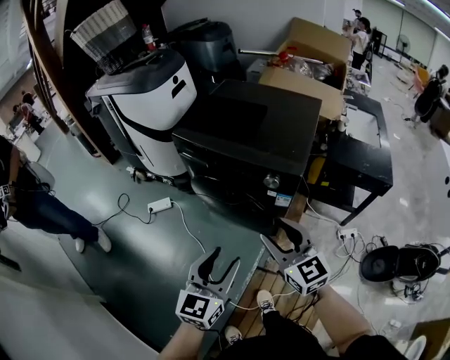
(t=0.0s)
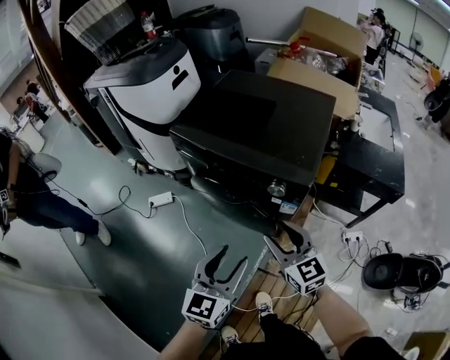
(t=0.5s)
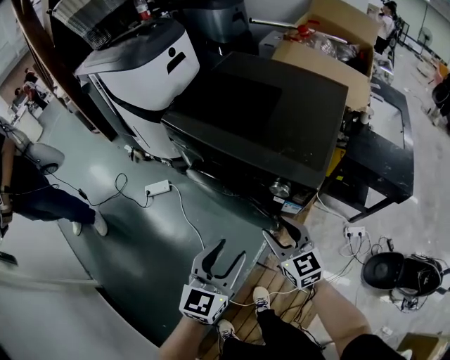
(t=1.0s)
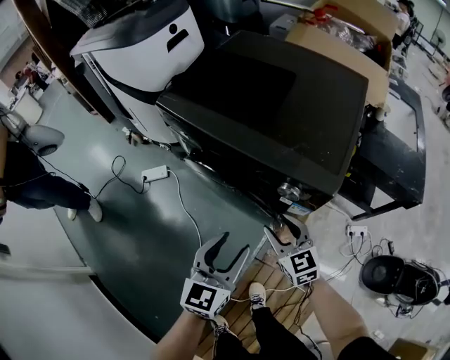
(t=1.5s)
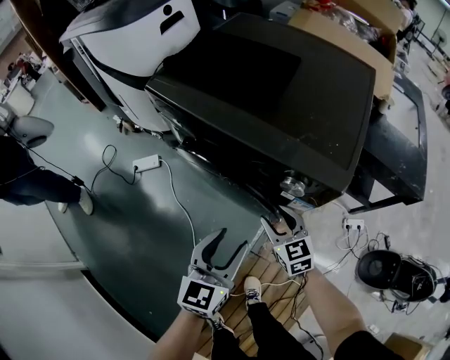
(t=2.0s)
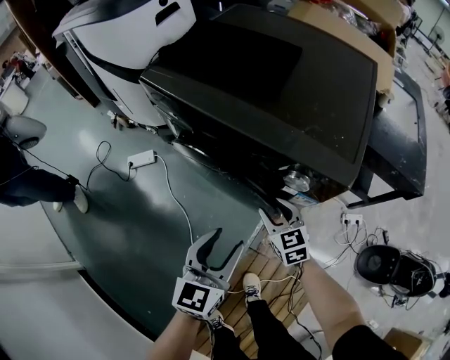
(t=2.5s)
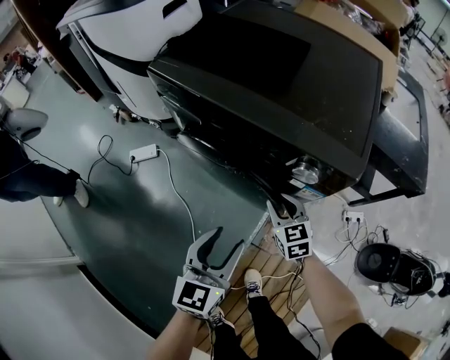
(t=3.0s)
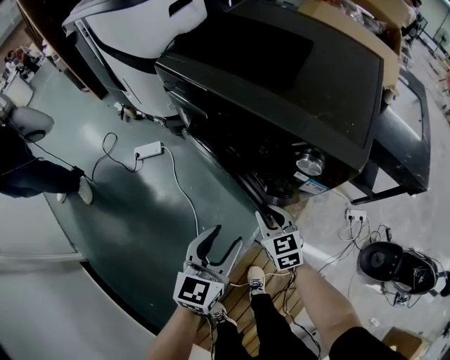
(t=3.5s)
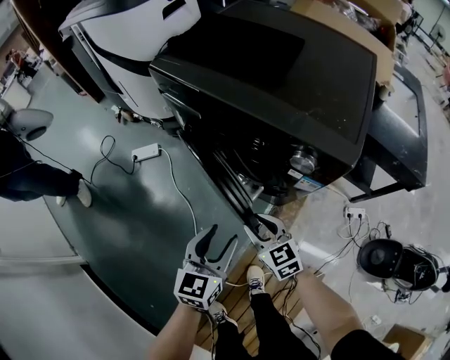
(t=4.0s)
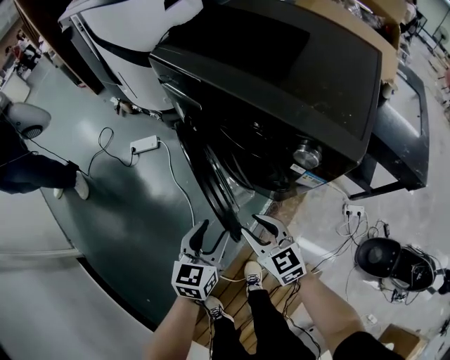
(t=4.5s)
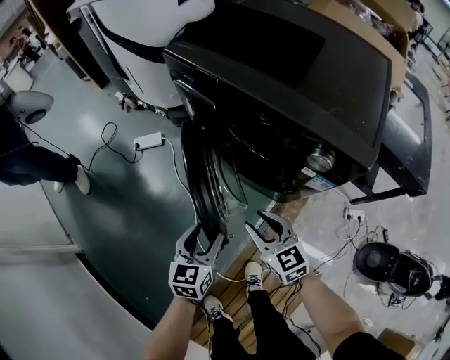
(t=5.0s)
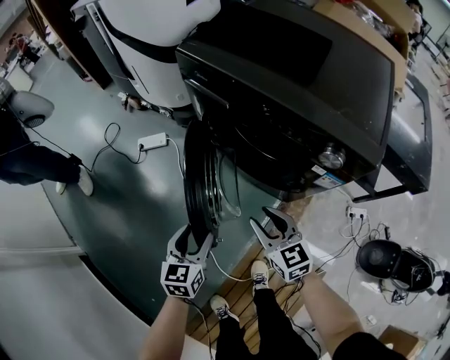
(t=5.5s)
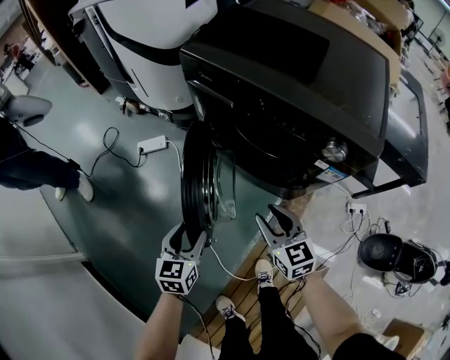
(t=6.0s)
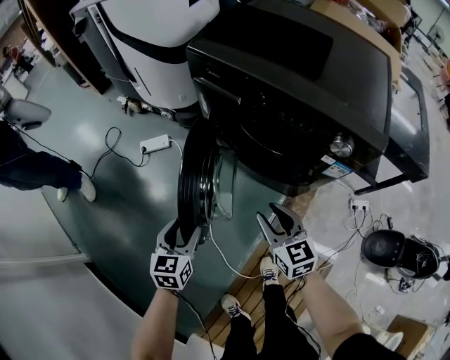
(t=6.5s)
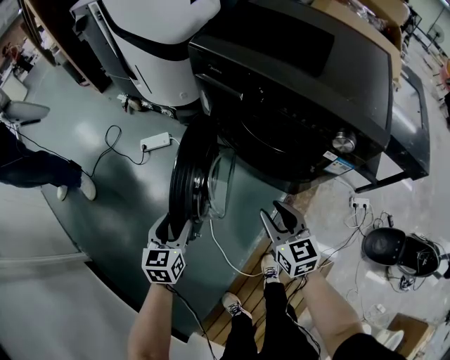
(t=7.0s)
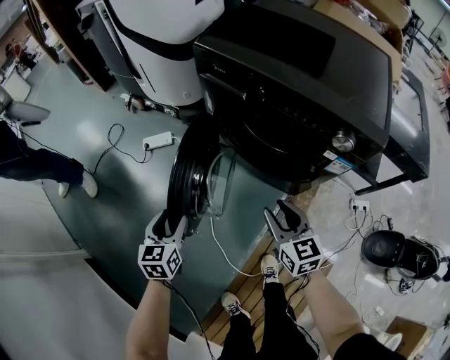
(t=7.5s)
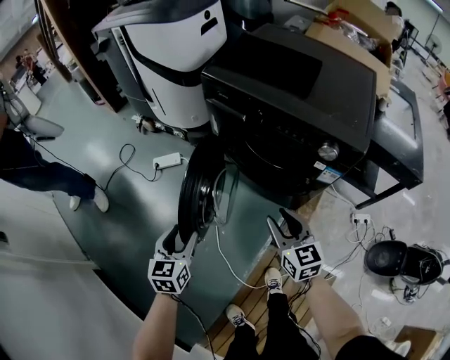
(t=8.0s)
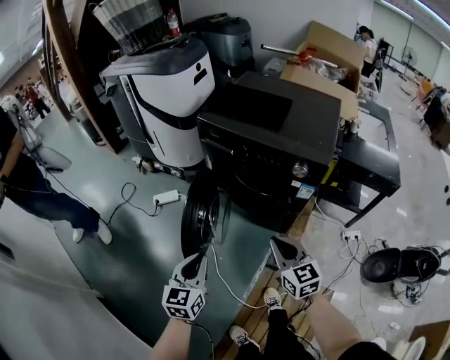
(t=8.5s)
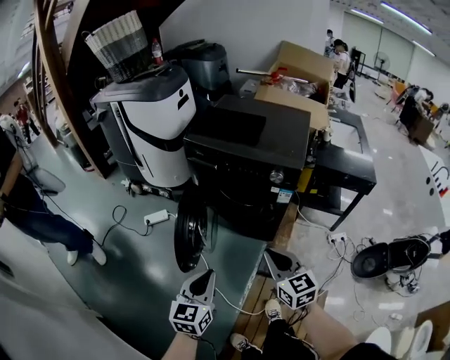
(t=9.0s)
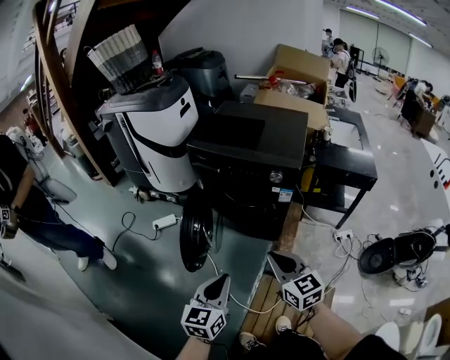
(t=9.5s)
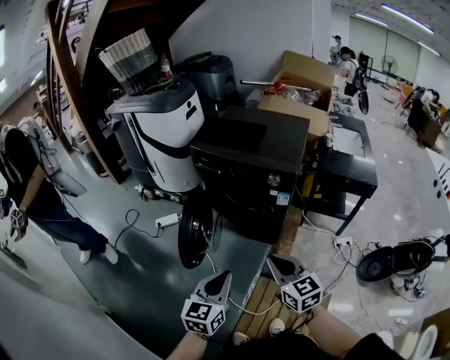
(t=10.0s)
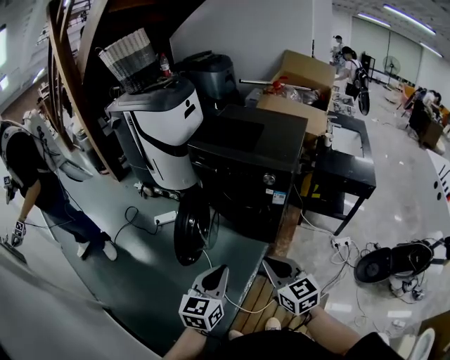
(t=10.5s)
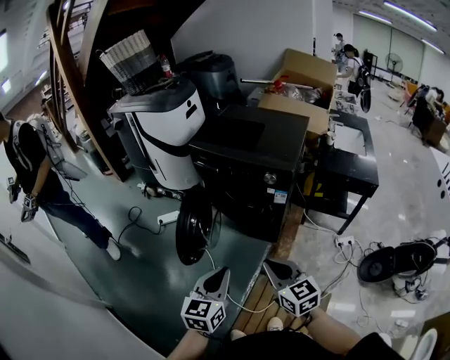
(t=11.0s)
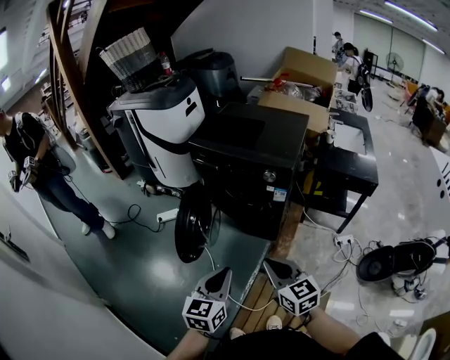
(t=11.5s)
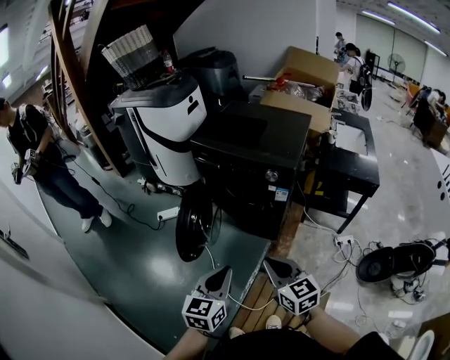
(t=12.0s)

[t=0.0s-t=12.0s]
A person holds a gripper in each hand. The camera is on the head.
t=0.0s to t=2.0s: Both grippers travel together downward and forward, approximately 30 cm. The right gripper changes its angle by about 20 degrees.
t=2.0s to t=4.0s: The left gripper travels downward by roughly 5 cm. Meanwhile the right gripper shifts some 10 cm to the left and backward.
t=4.0s to t=6.0s: The right gripper heads to the left, covering about 5 cm. Meanwhile the left gripper heads to the left, covering approximately 20 cm.
t=6.0s to t=8.0s: The left gripper travels to the left and upward by some 10 cm. The right gripper moves upward, approximately 5 cm.
t=8.0s to t=10.0s: The right gripper heads backward and upward, covering some 30 cm, and closes. Meanwhile the left gripper goes approximately 35 cm upward, backward and to the right, changes its angle by approximately 20 degrees, and closes its fingers.
t=10.0s to t=12.0s: The grippers move only a little.

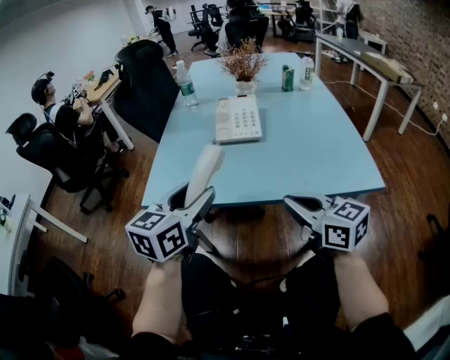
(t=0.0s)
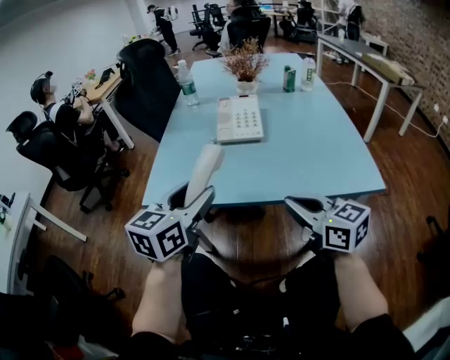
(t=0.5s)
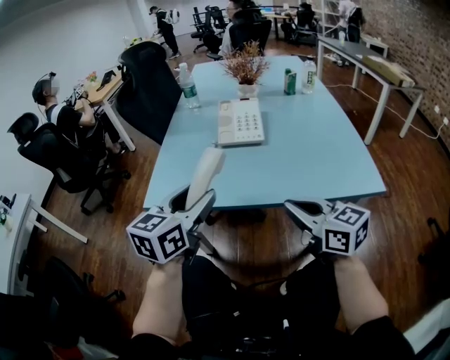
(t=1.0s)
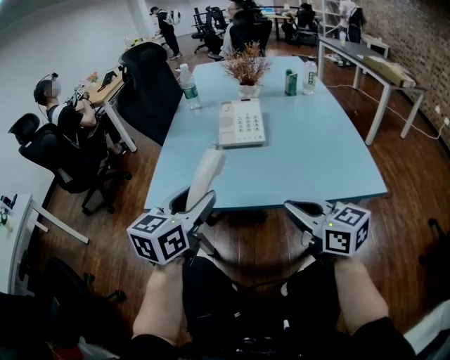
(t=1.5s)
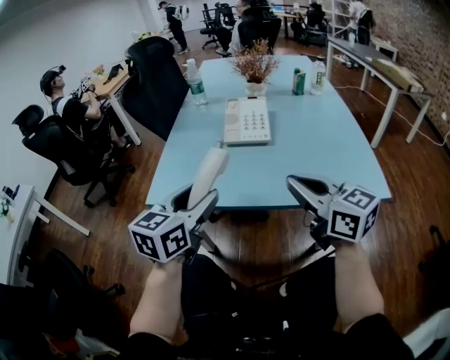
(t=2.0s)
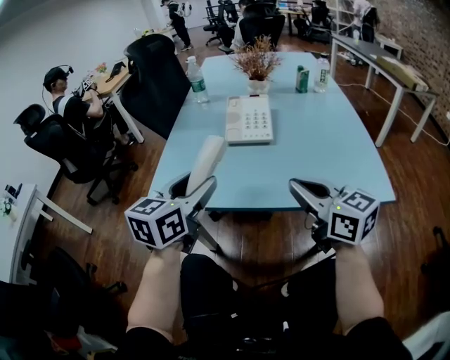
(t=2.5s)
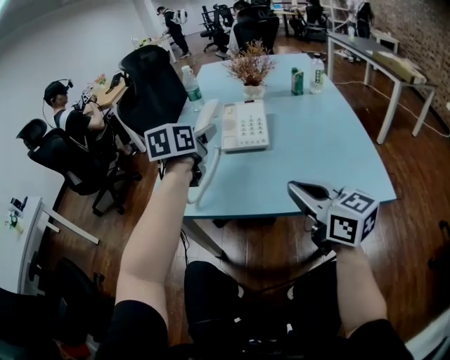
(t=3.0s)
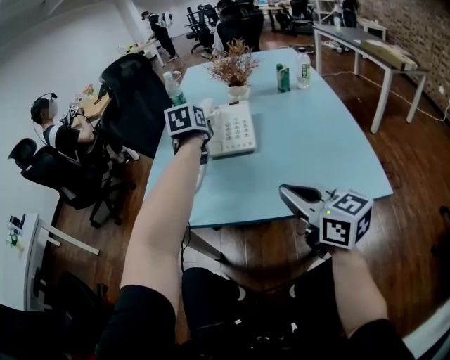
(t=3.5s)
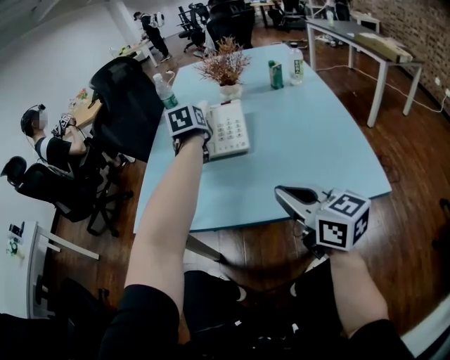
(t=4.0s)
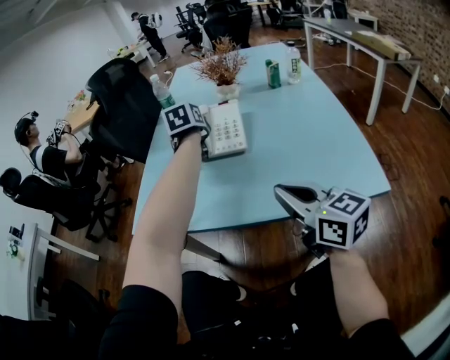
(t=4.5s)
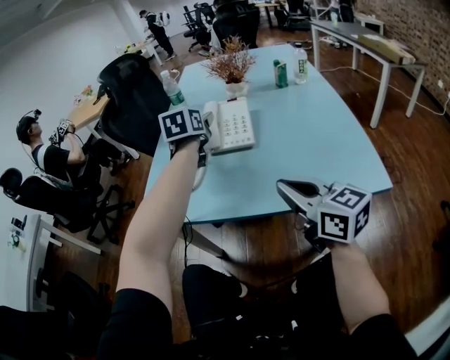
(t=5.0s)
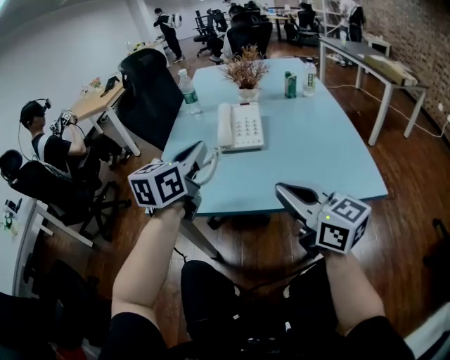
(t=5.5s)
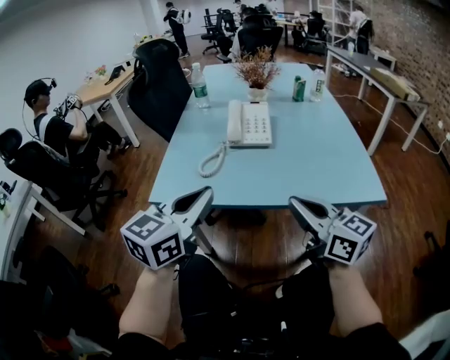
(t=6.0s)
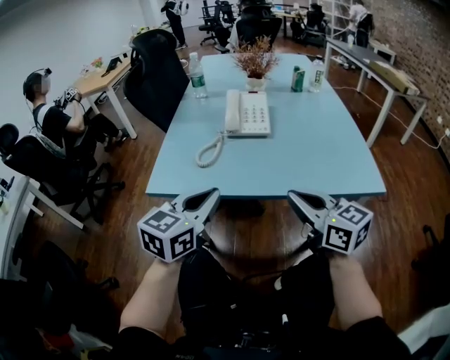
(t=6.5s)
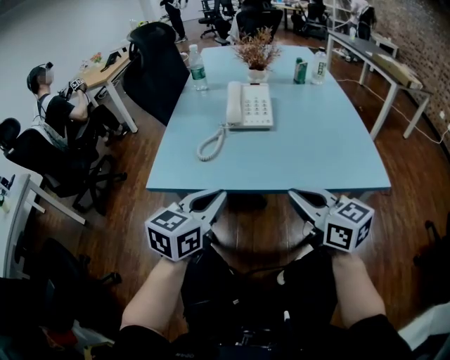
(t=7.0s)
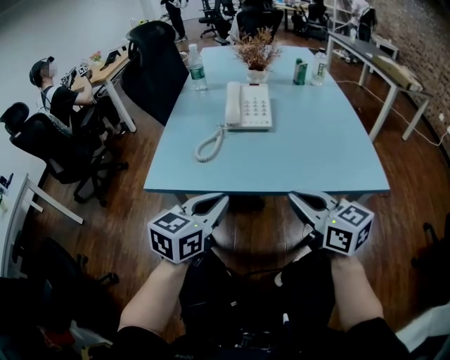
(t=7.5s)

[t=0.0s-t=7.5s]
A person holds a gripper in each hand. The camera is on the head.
t=0.0s to t=2.0s: The right gripper moves upward, some 5 cm.
t=2.0s to t=4.0s: The right gripper shifts by roughly 5 cm. Meanwhile the left gripper is displaced forward by about 35 cm, and swivels approximately 30 degrees.
t=4.0s to t=5.5s: The right gripper moves to the left, some 5 cm, while the left gripper shifts about 25 cm backward and upward, changes its angle by approximately 30 degrees, and closes.
t=5.5s to t=7.5s: The right gripper moves downward, about 5 cm; the left gripper travels backward and downward by approximately 20 cm.

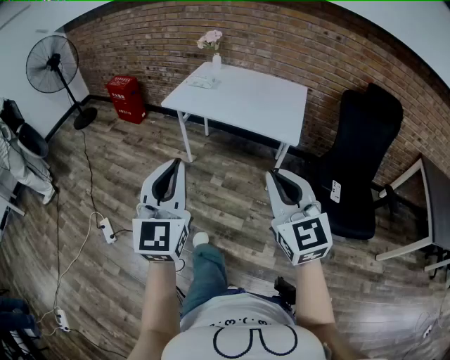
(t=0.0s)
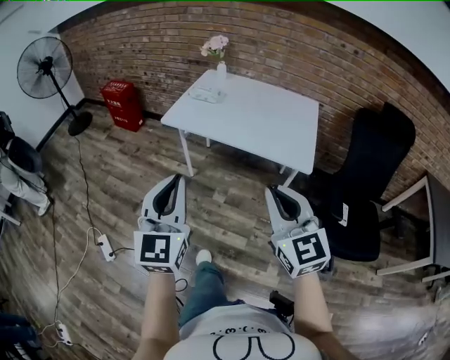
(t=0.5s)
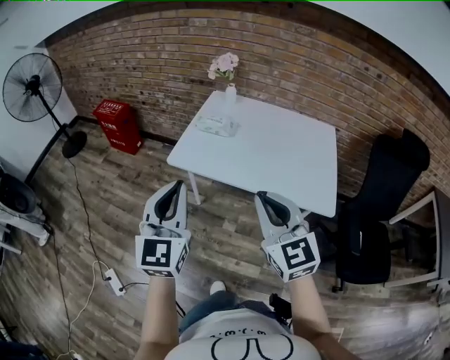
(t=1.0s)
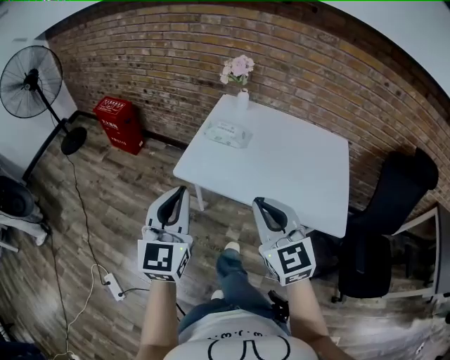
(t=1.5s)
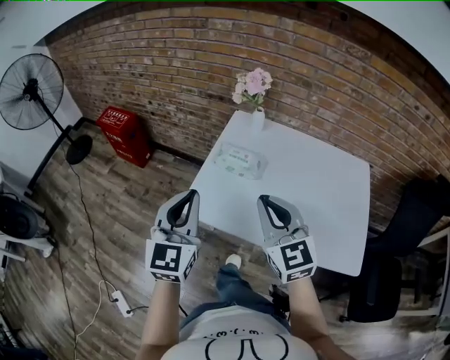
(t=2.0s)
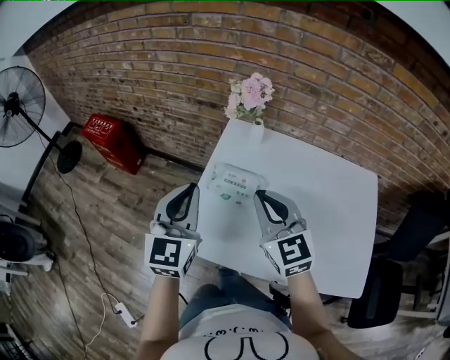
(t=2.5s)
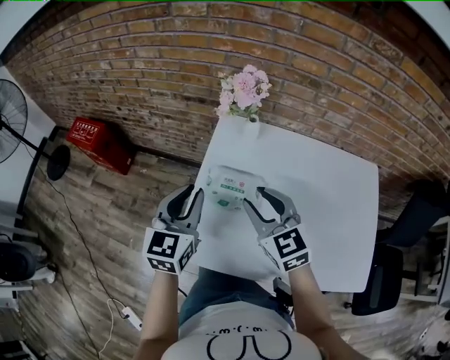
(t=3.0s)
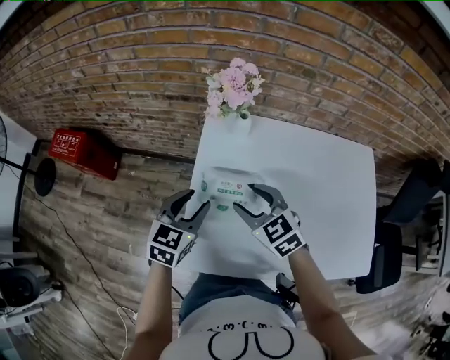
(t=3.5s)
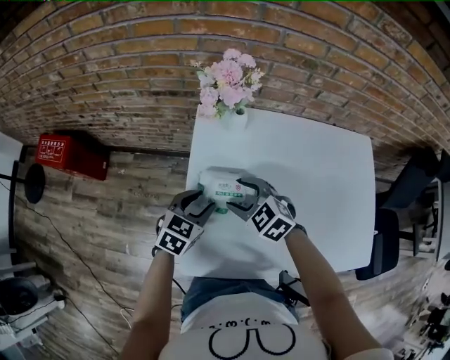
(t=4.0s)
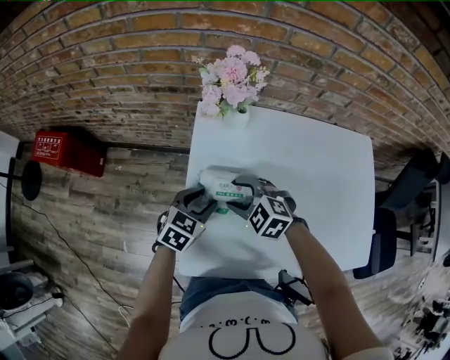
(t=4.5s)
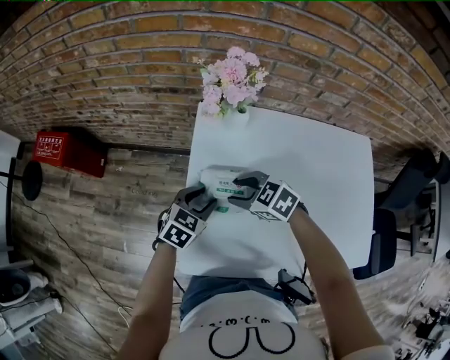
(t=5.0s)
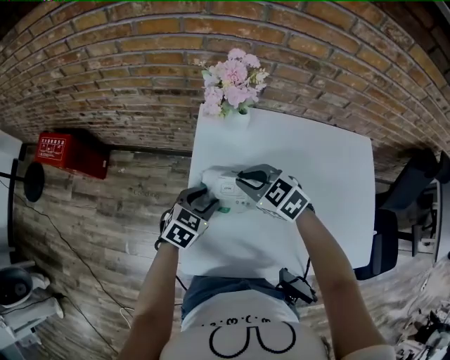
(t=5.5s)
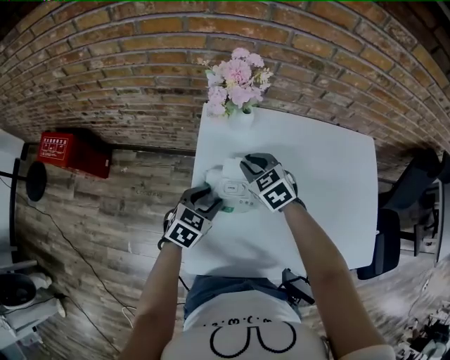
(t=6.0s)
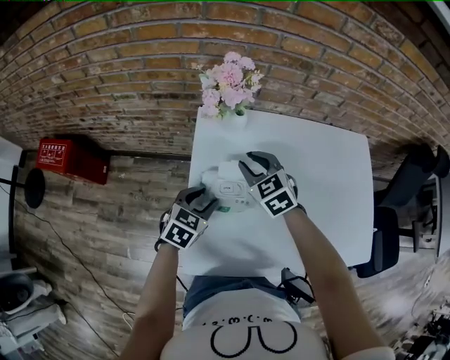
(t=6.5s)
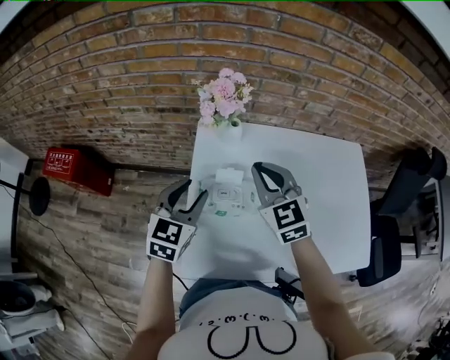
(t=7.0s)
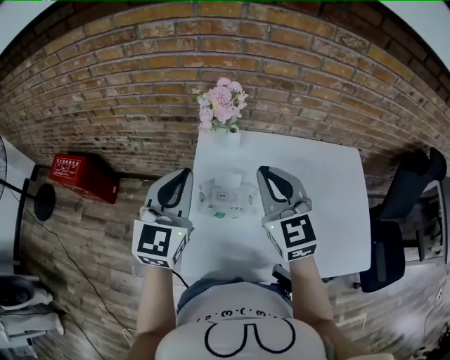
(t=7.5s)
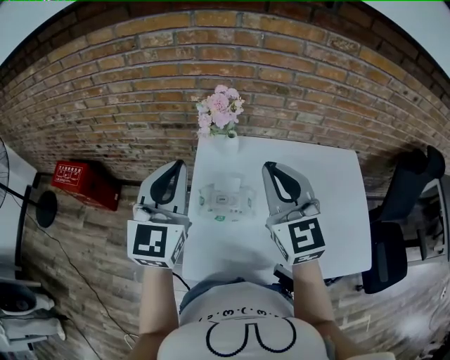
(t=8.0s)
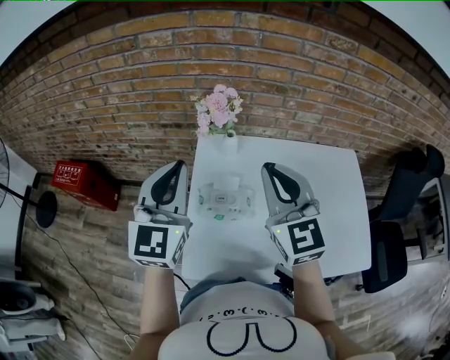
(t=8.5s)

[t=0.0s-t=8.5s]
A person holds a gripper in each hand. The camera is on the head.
t=0.0s to t=2.0s: The two grippers travel together, forward, some 70 cm.
t=2.0s to t=4.0s: Both grippers travel together forward and downward, about 35 cm. The left gripper tips its fingers downward by roughly 40 degrees, and opens up. Meanwhile the right gripper angles its fingers downward, by some 40 degrees, and opens its fingers.
t=4.0s to t=6.5s: The right gripper goes approximately 10 cm forward, changes its angle by about 20 degrees, and closes its fingers.
t=6.5s to t=8.5s: The right gripper goes some 30 cm upward and backward, points its fingers approximately 40 degrees further upward, and closes; the left gripper shifts approximately 30 cm upward, tilts its fingers roughly 40 degrees upward, and closes its fingers.
